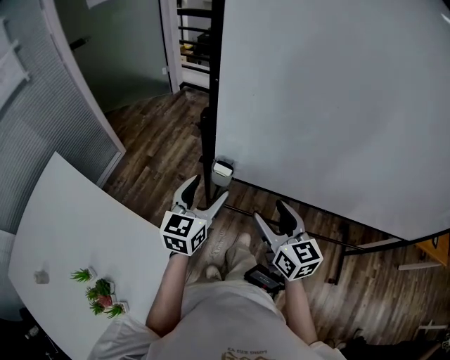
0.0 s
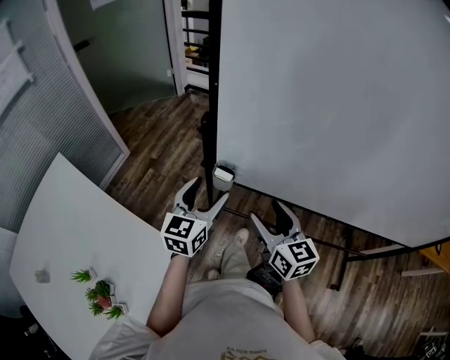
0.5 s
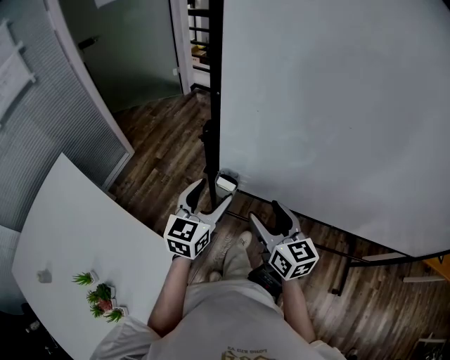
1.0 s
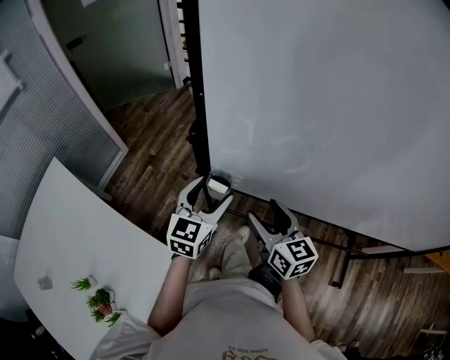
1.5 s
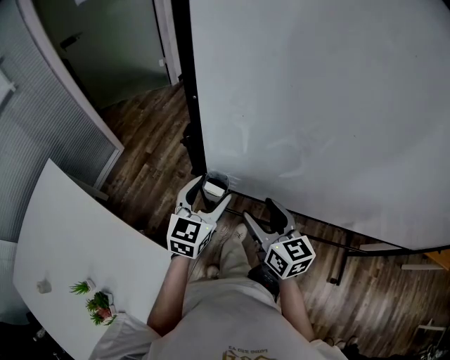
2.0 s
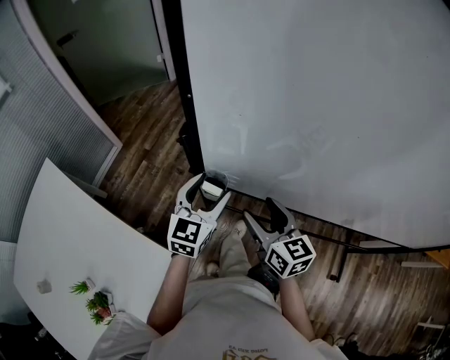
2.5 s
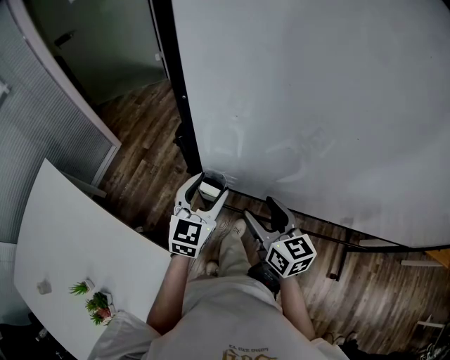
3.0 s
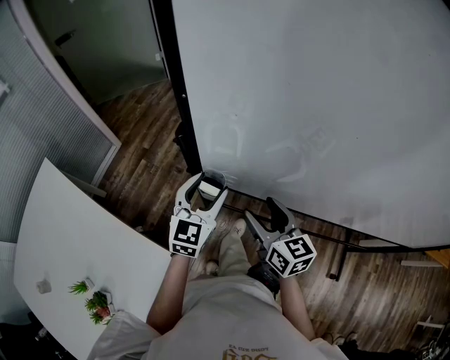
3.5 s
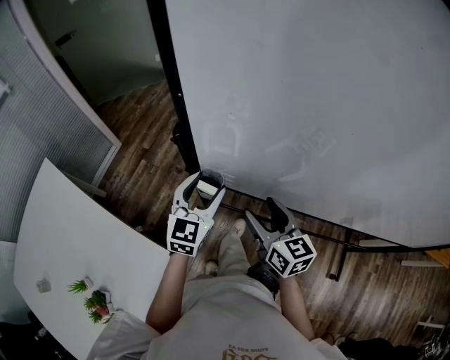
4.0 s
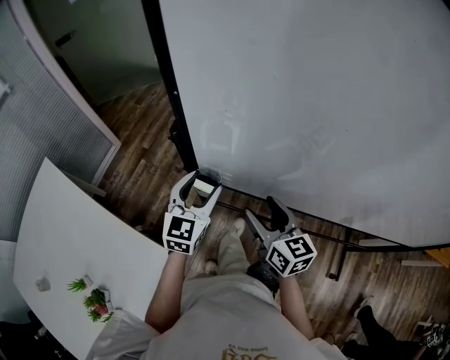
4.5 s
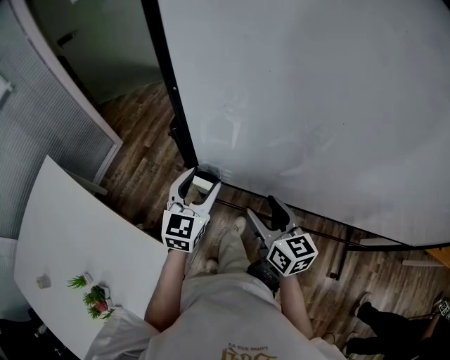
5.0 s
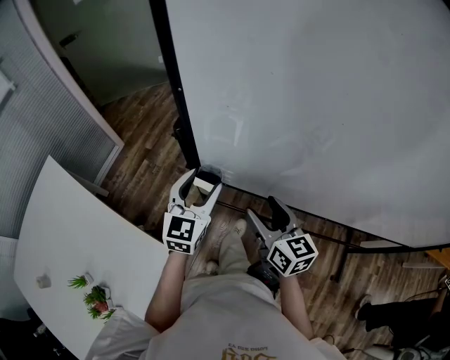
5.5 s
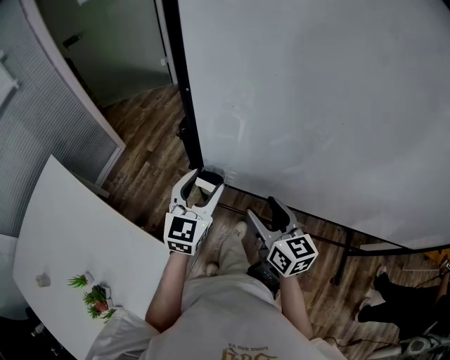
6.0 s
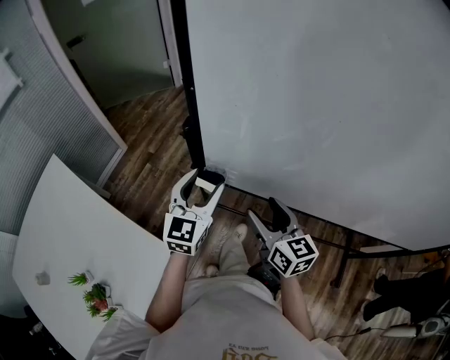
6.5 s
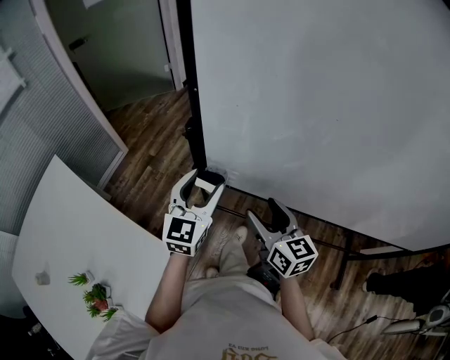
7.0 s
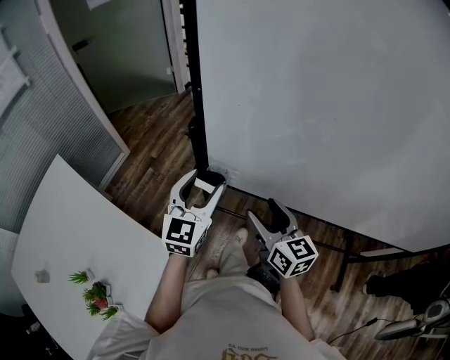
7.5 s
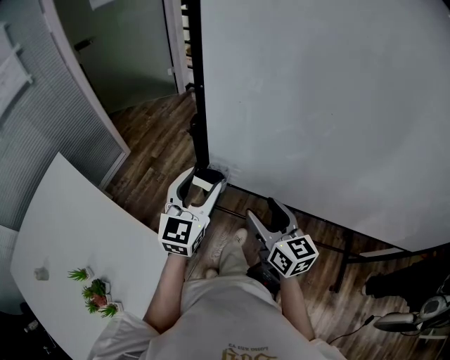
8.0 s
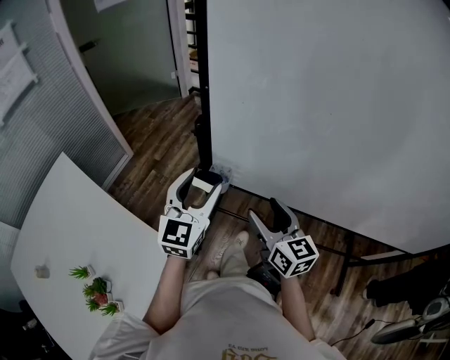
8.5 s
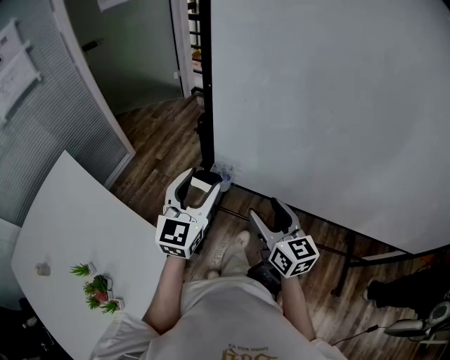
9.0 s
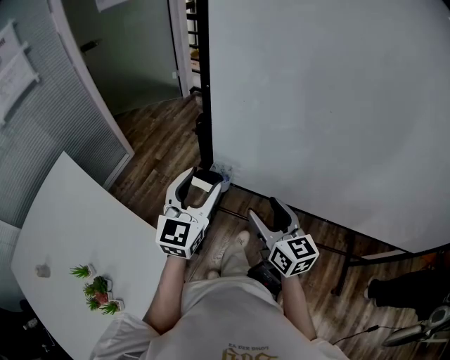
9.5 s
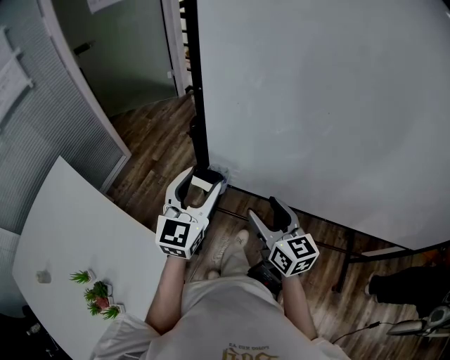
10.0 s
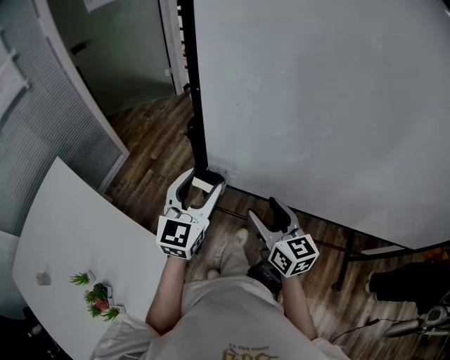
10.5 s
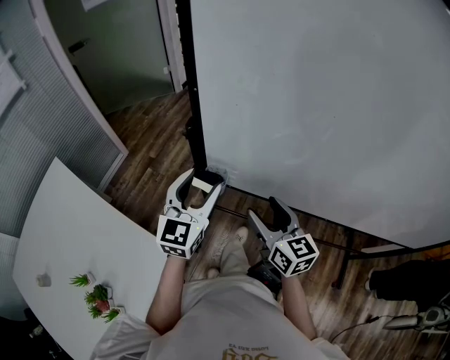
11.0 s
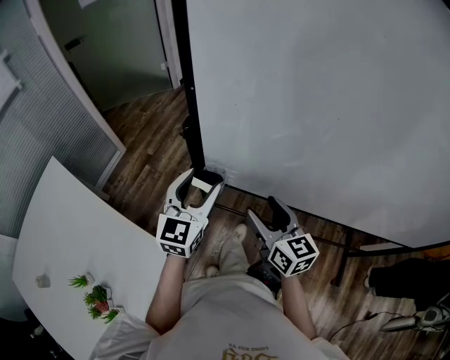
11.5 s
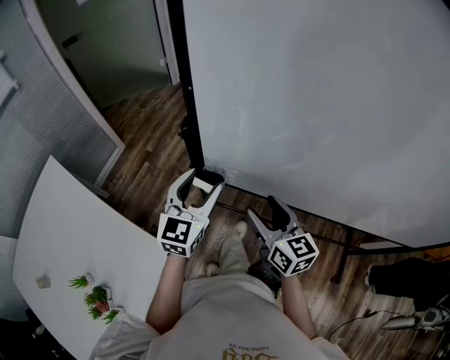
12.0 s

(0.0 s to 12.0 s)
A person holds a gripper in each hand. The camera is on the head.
0.0 s - 2.0 s: The grippers both shift forward by approximately 10 cm.
2.0 s - 6.0 s: There are only small adjustments of the grippers.
6.0 s - 8.0 s: The left gripper is displaced upward by about 5 cm.
8.0 s - 10.0 s: The grippers move only a little.
10.0 s - 12.0 s: The left gripper travels downward by about 5 cm.

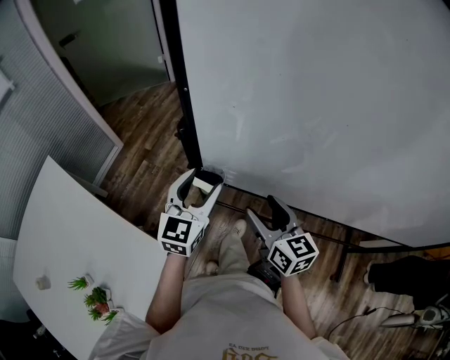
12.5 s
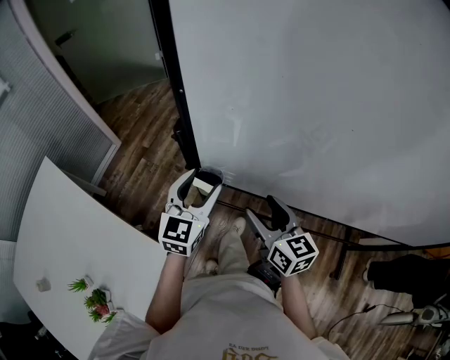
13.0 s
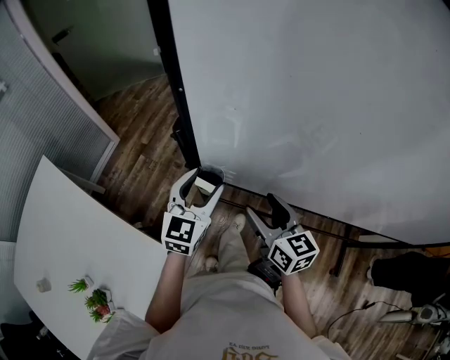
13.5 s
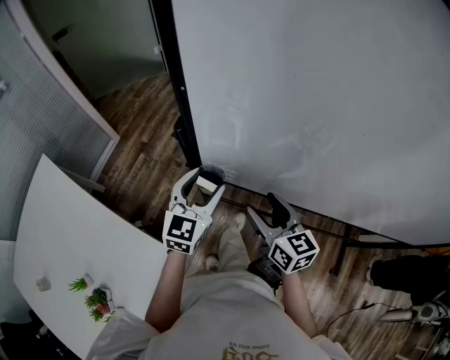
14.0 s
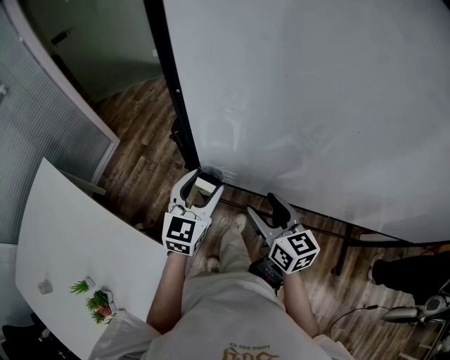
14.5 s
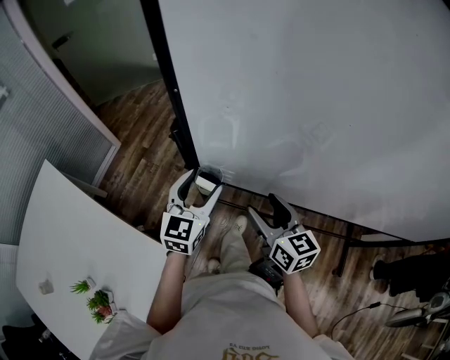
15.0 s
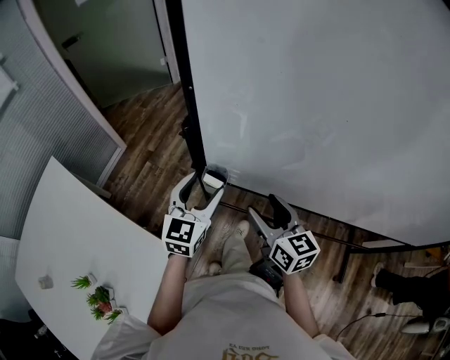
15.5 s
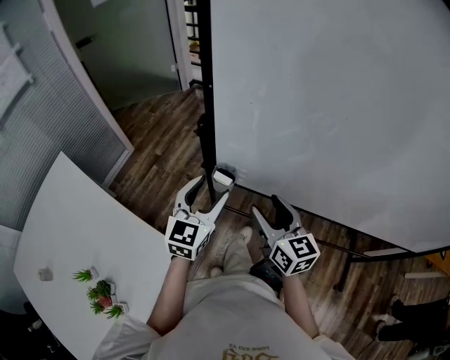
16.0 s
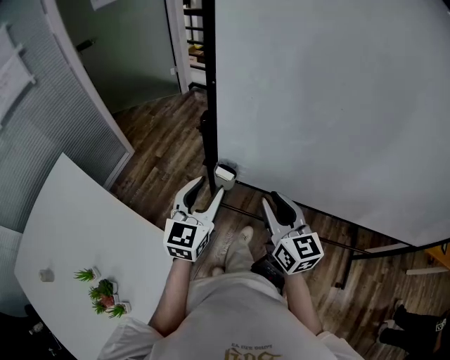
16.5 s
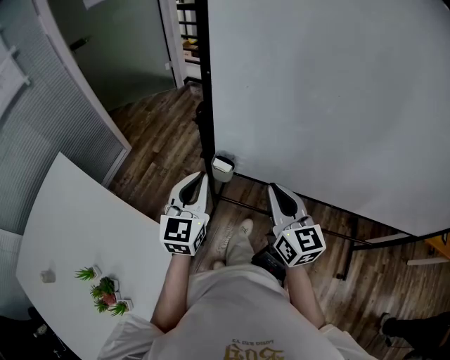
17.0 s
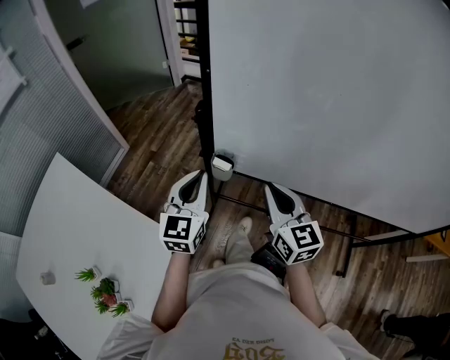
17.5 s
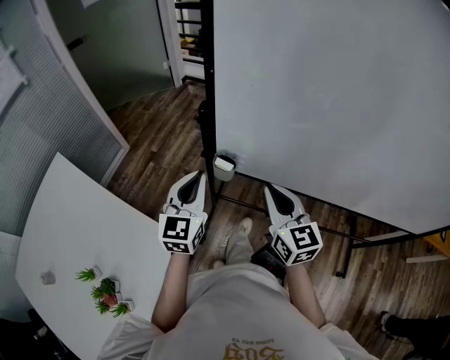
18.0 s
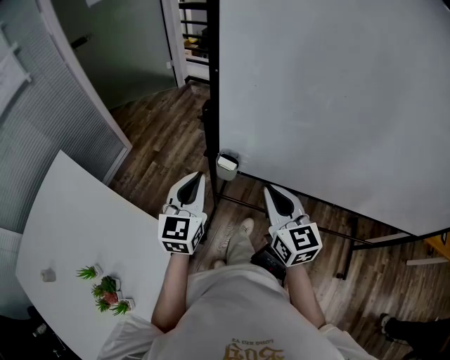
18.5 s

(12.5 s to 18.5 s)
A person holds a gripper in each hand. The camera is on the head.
12.5 s - 14.5 s: There are only small adjustments of the grippers.
14.5 s - 16.5 s: The left gripper moves backward and upward, about 10 cm; the right gripper heads upward, covering approximately 5 cm, and closes up.
16.5 s - 18.5 s: The right gripper closes. Meanwhile the left gripper closes up.

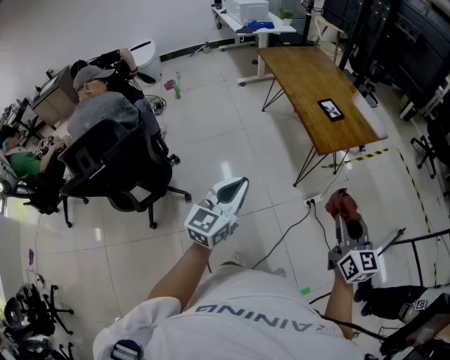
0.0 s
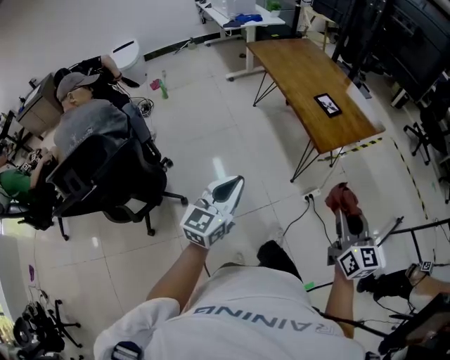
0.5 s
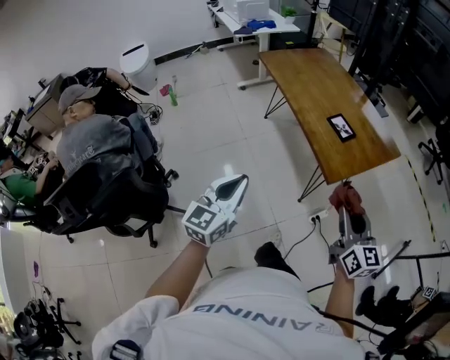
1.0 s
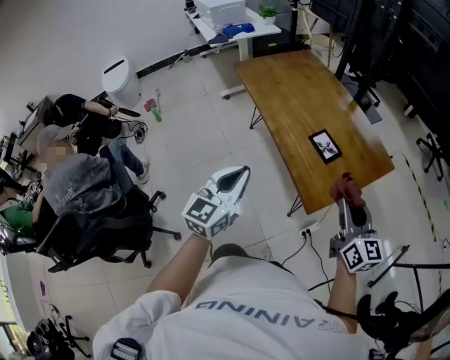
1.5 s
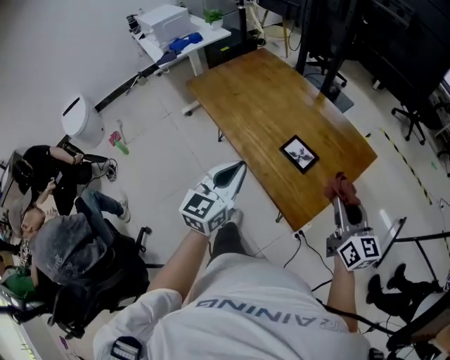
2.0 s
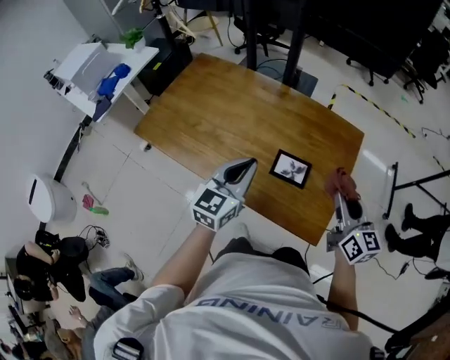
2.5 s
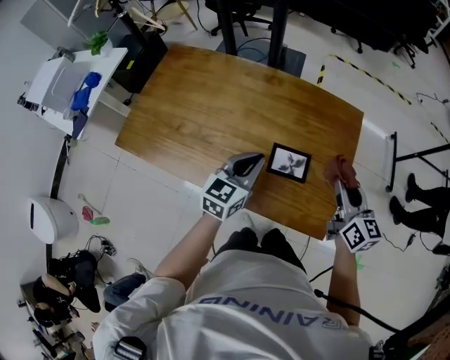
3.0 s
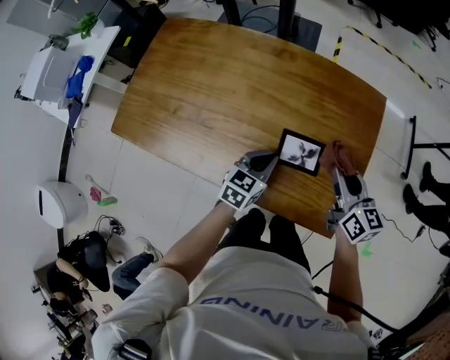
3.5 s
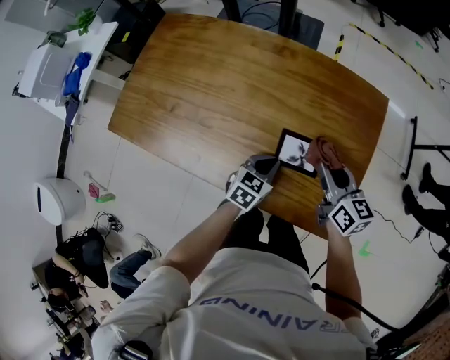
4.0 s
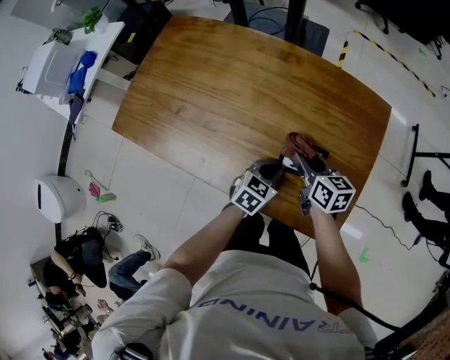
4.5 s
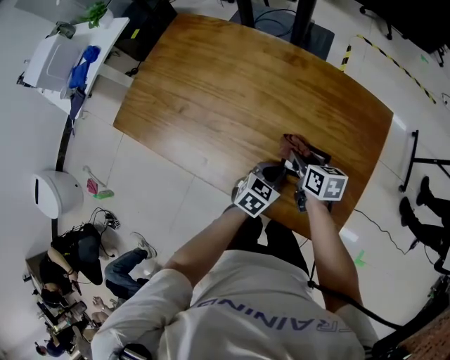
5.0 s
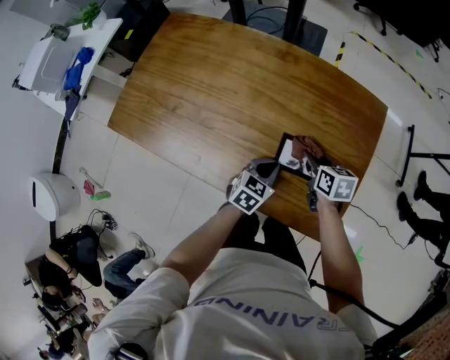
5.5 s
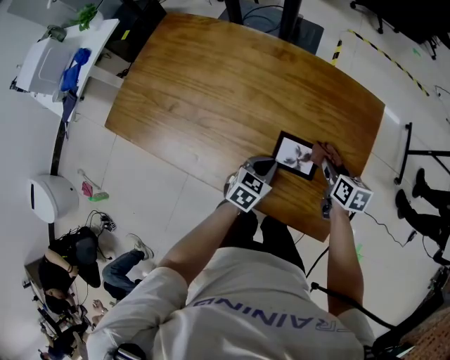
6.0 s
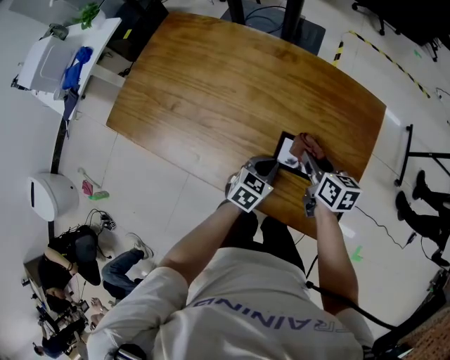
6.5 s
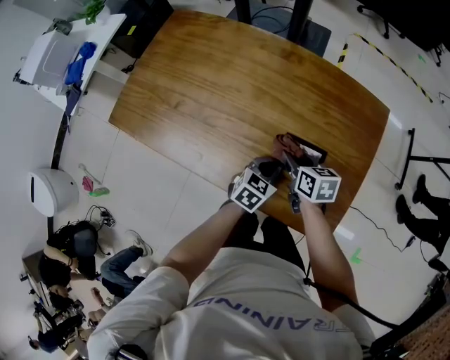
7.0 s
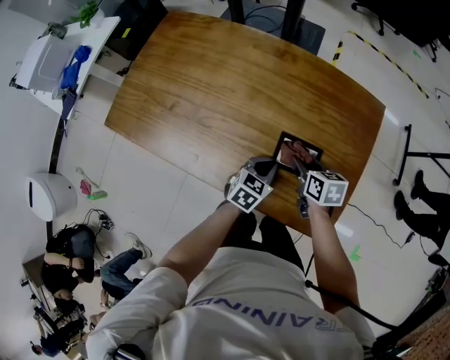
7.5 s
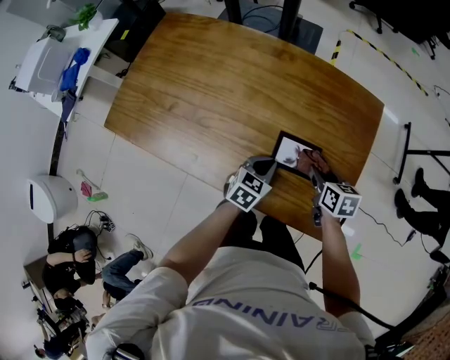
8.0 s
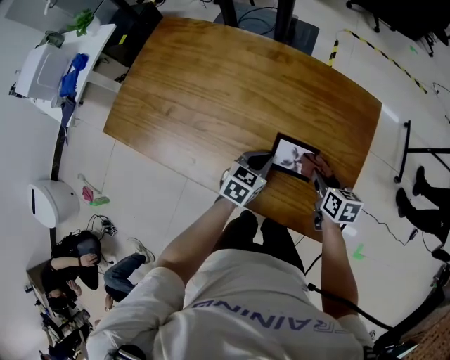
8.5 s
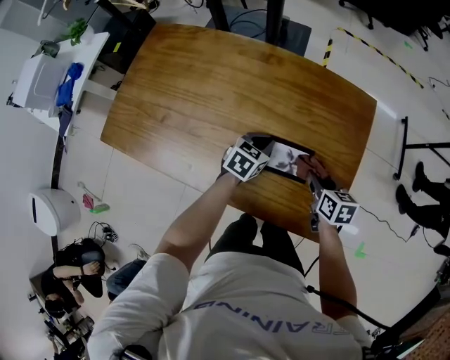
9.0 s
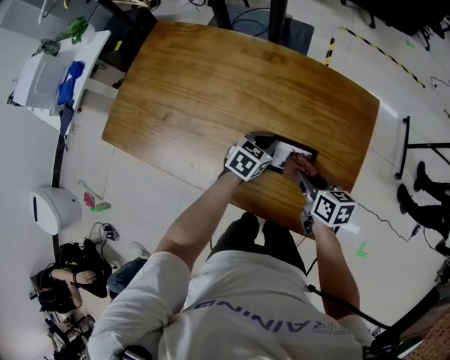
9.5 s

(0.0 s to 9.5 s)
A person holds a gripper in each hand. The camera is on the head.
0.0 s - 2.0 s: The pair of grippers is taken forward, some 50 cm.
2.0 s - 4.0 s: The left gripper heads downward, covering roughly 30 cm, and tips its fingers downward by about 40 degrees. The right gripper changes place by about 25 cm, and swivels some 30 degrees.
4.0 s - 5.5 s: The right gripper moves downward, roughly 10 cm, and turns by about 30 degrees.
5.5 s - 7.5 s: The right gripper swings left and right, about 15 cm each way, with 2 reversals.
7.5 s - 9.5 s: The right gripper goes to the right and returns, about 10 cm each way, while the left gripper shifts approximately 10 cm forward.
